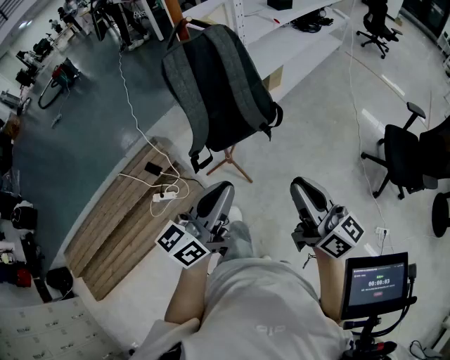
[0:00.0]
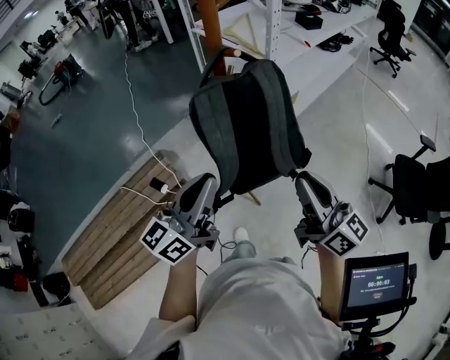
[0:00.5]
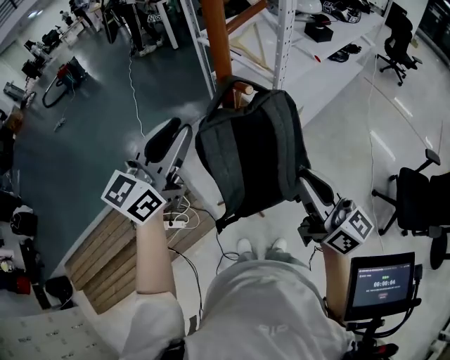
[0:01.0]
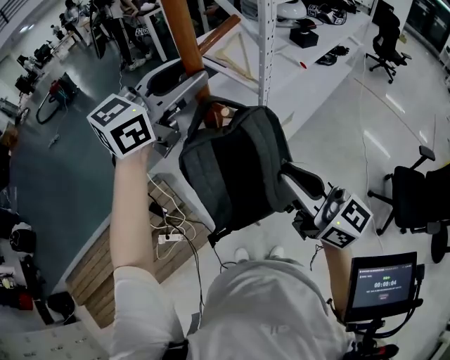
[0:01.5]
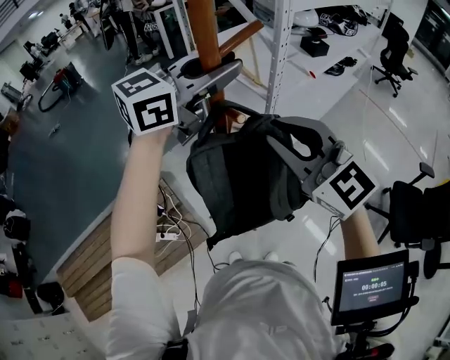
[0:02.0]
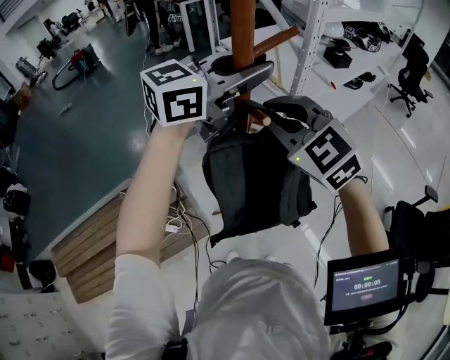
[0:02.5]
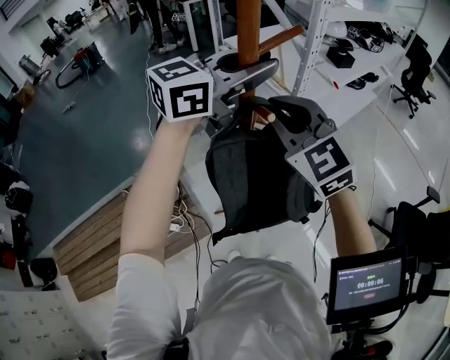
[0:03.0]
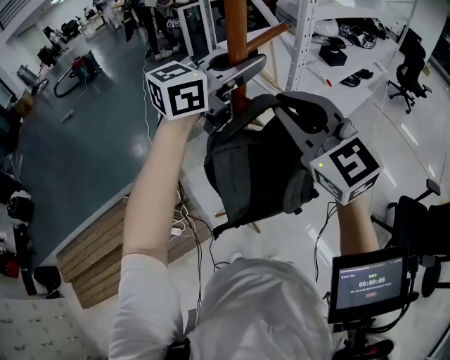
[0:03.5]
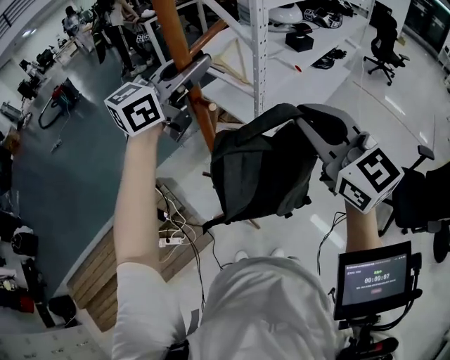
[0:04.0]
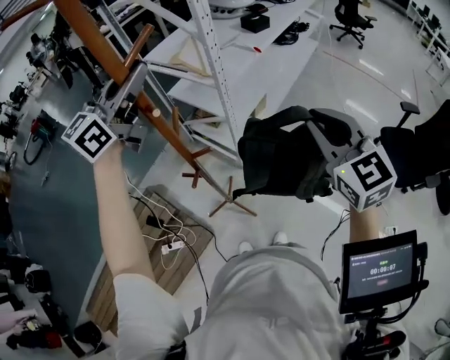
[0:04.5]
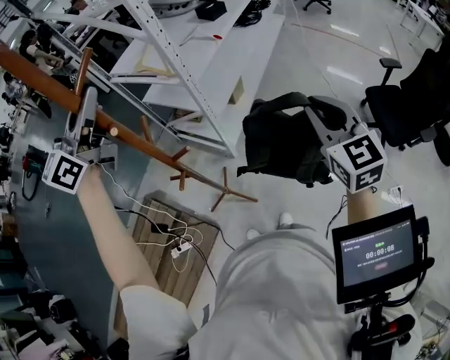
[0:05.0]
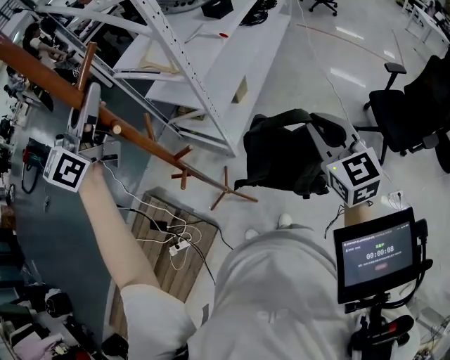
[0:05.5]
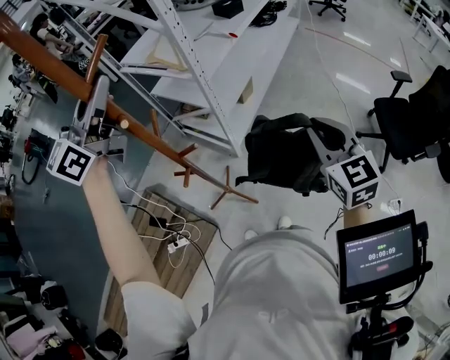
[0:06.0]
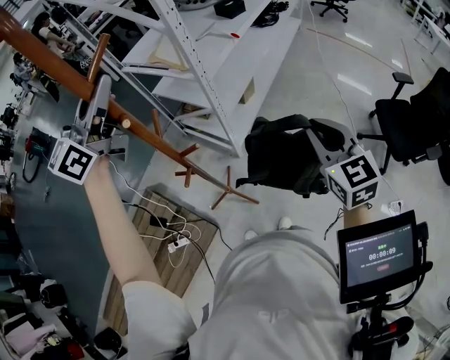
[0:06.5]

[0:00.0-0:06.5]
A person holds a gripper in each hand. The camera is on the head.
0:00.0 to 0:02.0: The right gripper goes some 40 cm forward, to the left and upward, and rotates around the line of its fingers by some 50 degrees, counterclockwise from behind, while the left gripper goes approximately 50 cm forward and upward, changes its angle by some 30 degrees, and opens.
0:02.0 to 0:04.5: The right gripper moves to the right, roughly 20 cm, and turns by about 40 degrees.
0:04.5 to 0:06.5: The right gripper is displaced downward by roughly 10 cm.

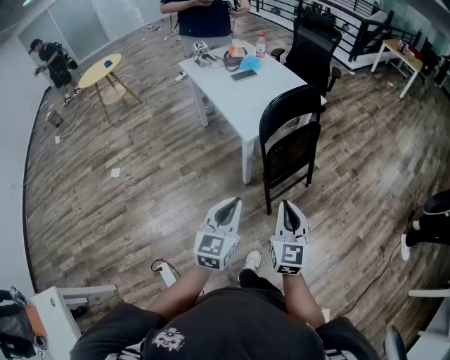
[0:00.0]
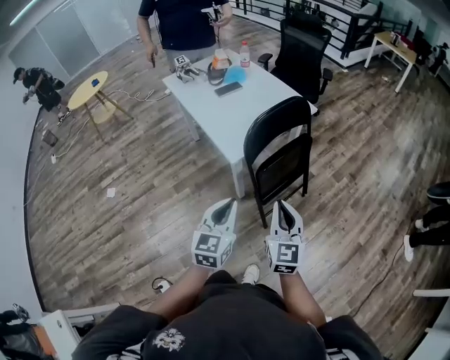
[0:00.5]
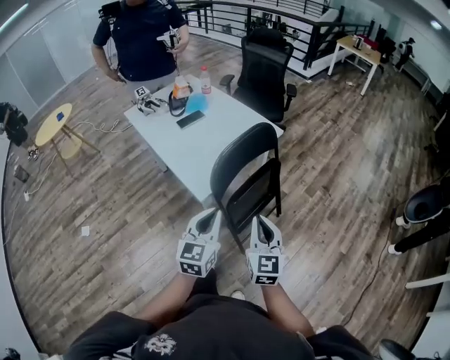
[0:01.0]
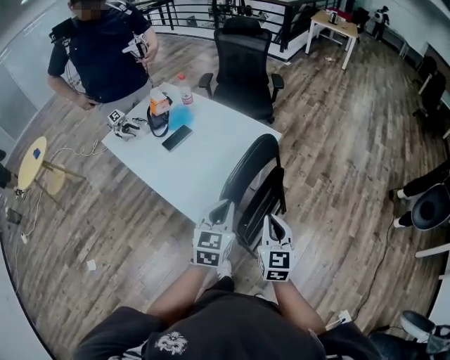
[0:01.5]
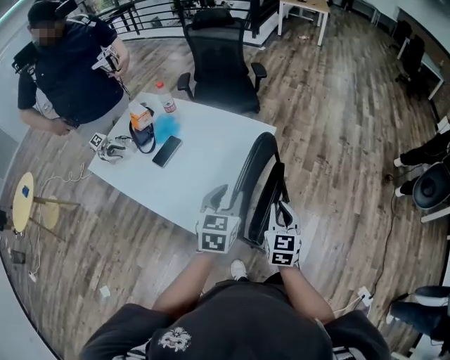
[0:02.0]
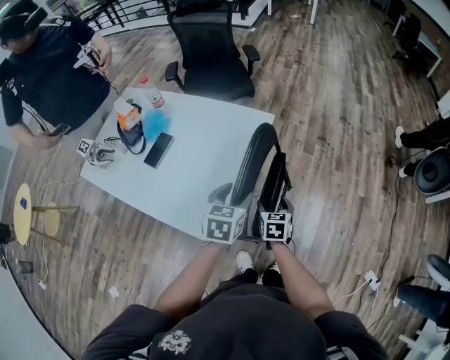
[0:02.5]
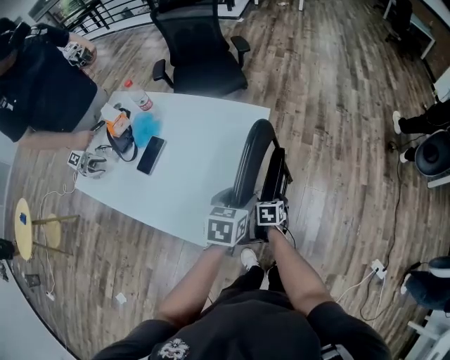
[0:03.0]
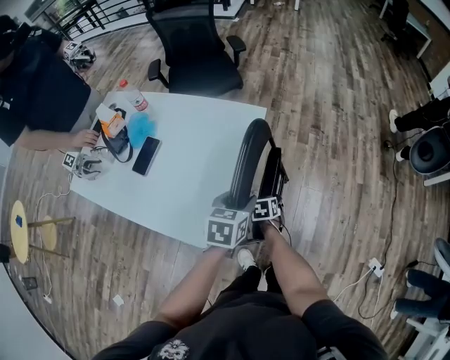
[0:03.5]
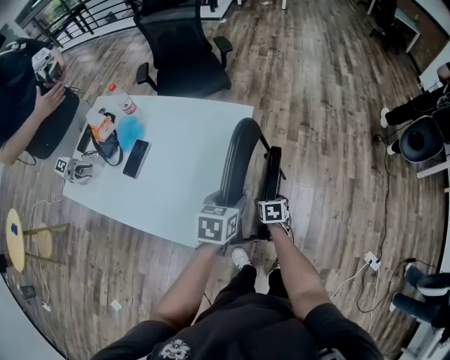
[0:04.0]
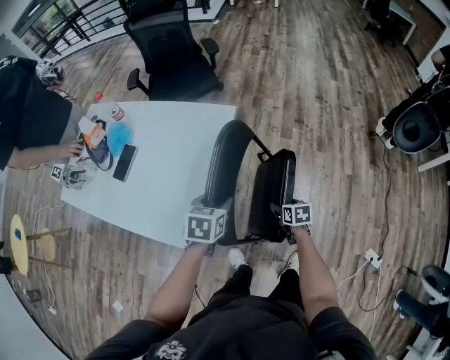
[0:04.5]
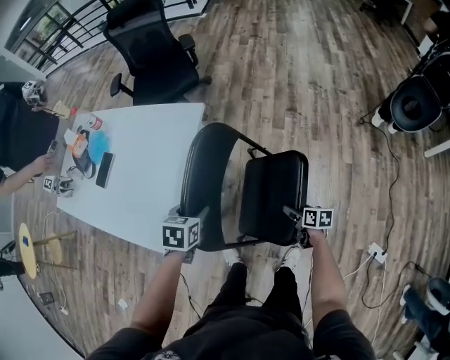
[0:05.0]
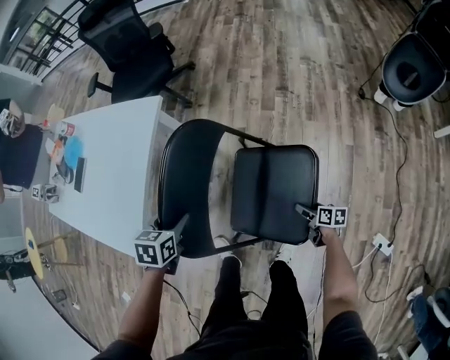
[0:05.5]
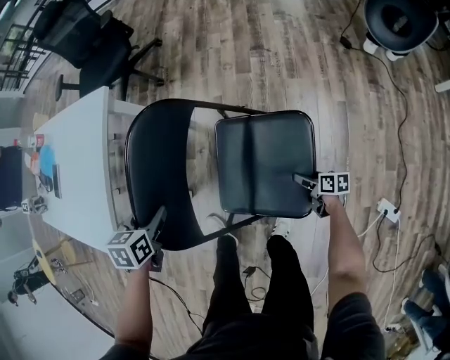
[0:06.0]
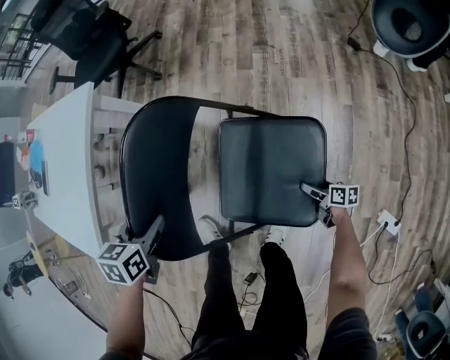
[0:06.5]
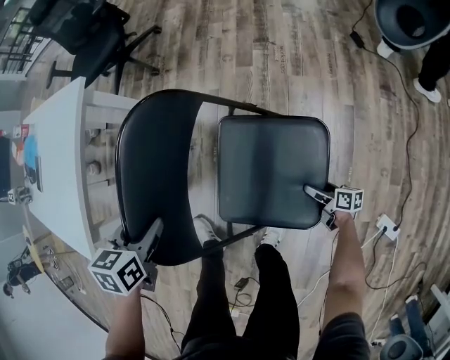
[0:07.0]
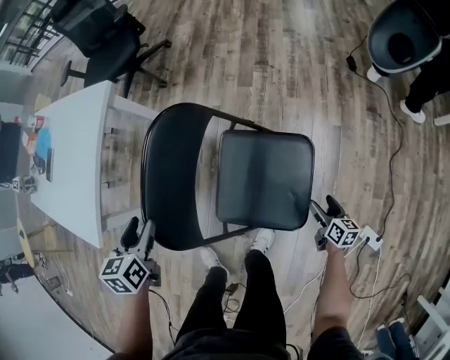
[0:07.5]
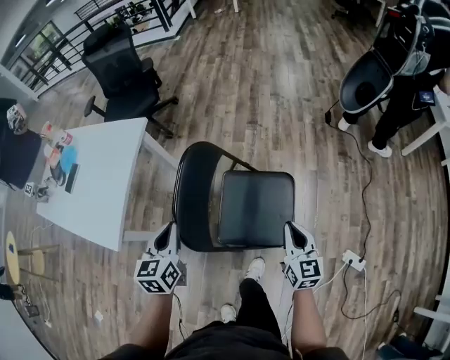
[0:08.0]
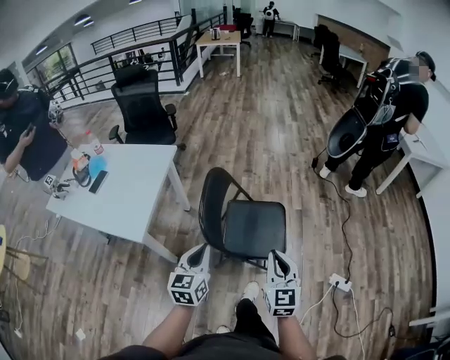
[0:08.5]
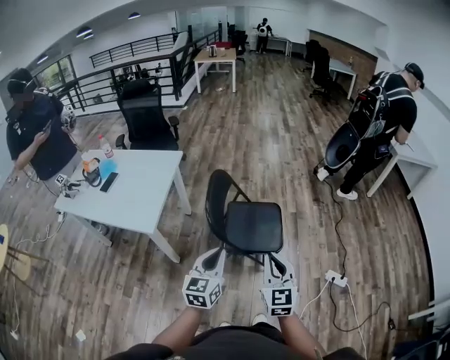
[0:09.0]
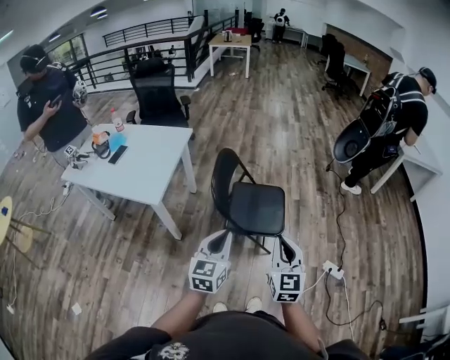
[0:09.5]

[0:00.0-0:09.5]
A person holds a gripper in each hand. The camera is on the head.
0:00.0 to 0:02.0: Both grippers are carried some 50 cm. The left gripper swivels about 30 degrees, and opens, while the right gripper changes its angle by roughly 40 degrees.
0:02.0 to 0:04.0: The right gripper goes roughly 25 cm downward, angles its fingers downward, by about 40 degrees, and opens, while the left gripper heads downward, covering some 10 cm, and turns by some 30 degrees.
0:04.0 to 0:05.5: The left gripper shifts about 20 cm to the right and downward; the right gripper heads to the right and downward, covering approximately 50 cm, and changes its angle by about 40 degrees.
0:05.5 to 0:07.5: The right gripper travels to the right and backward by approximately 20 cm, and changes its angle by approximately 20 degrees. Meanwhile the left gripper moves to the right and backward, about 10 cm, and turns by roughly 20 degrees.
0:07.5 to 0:09.5: The left gripper is displaced backward and upward by approximately 50 cm, tilts its fingers approximately 40 degrees upward, and closes; the right gripper goes roughly 80 cm upward, backward and to the left, swivels approximately 60 degrees, and closes.

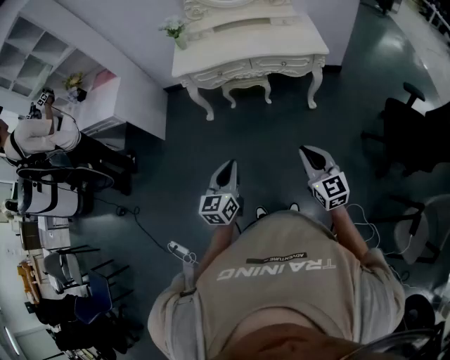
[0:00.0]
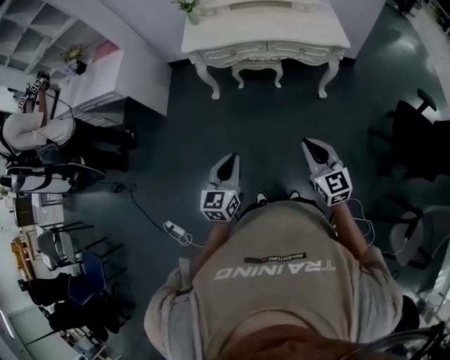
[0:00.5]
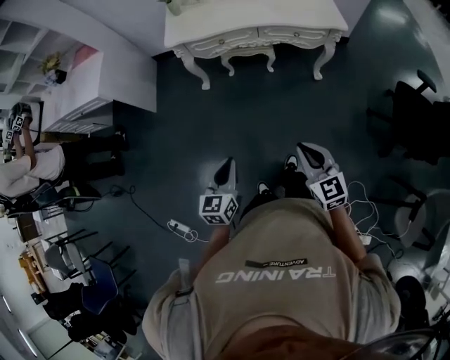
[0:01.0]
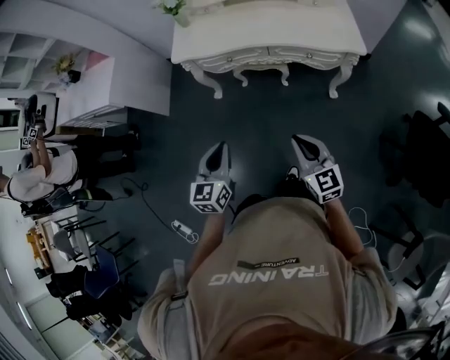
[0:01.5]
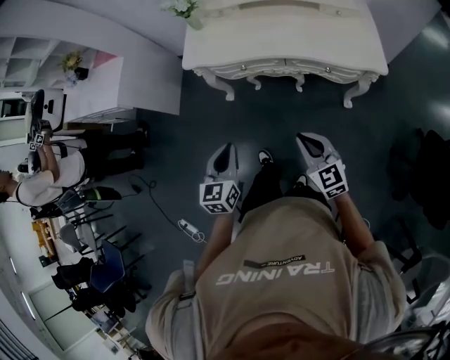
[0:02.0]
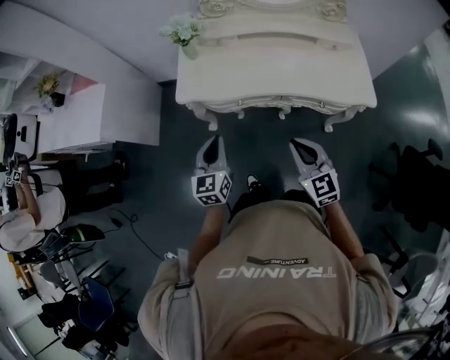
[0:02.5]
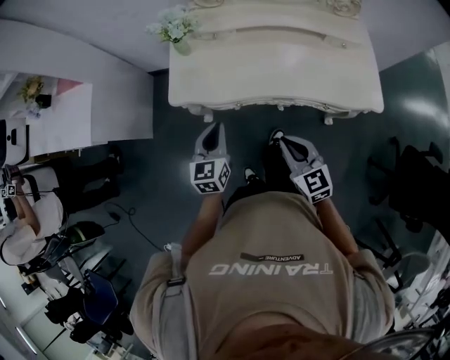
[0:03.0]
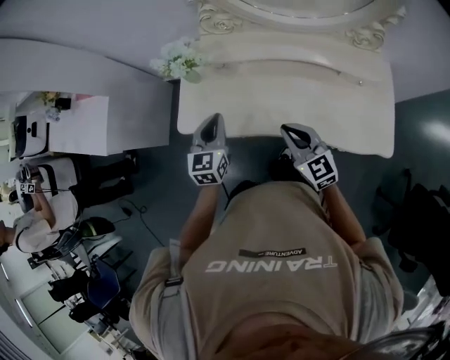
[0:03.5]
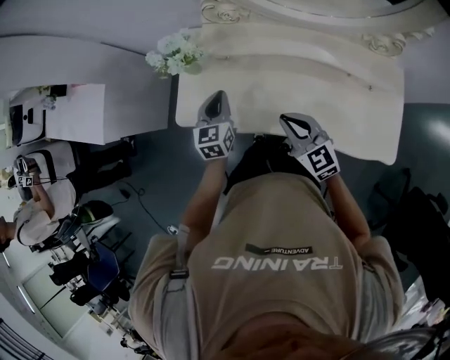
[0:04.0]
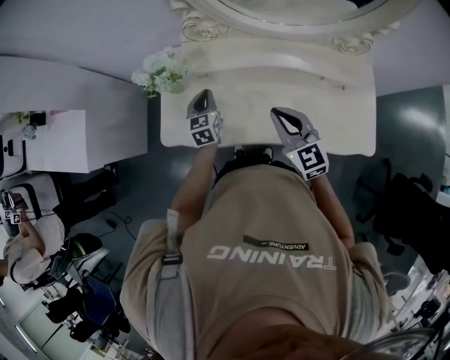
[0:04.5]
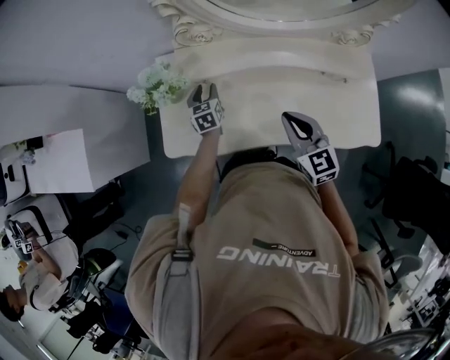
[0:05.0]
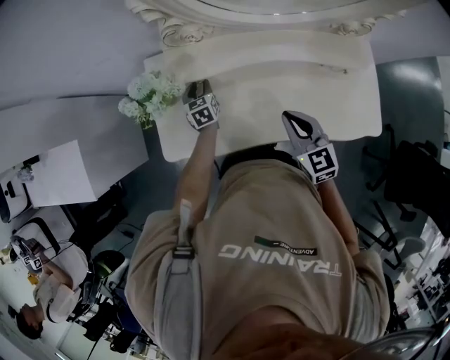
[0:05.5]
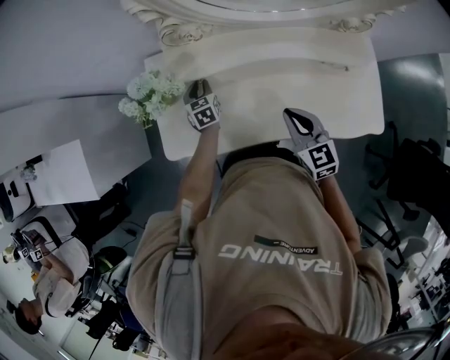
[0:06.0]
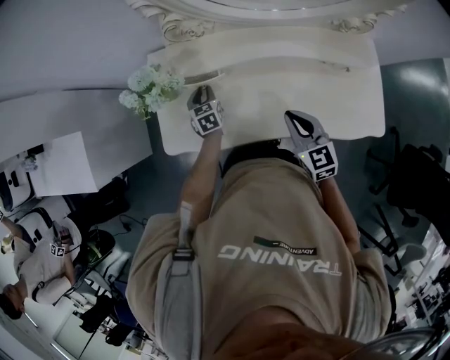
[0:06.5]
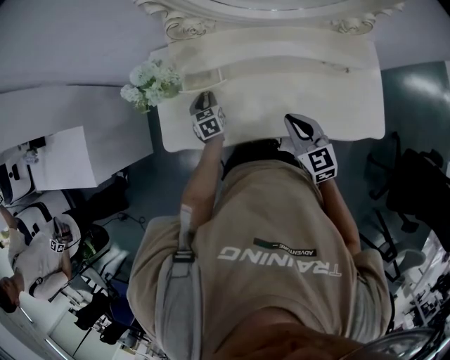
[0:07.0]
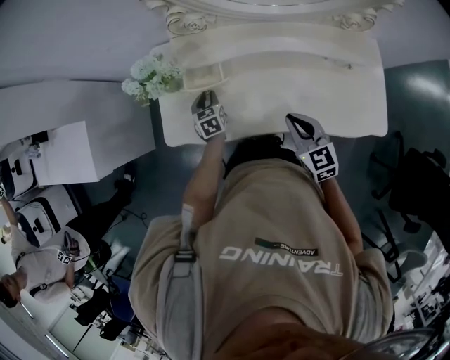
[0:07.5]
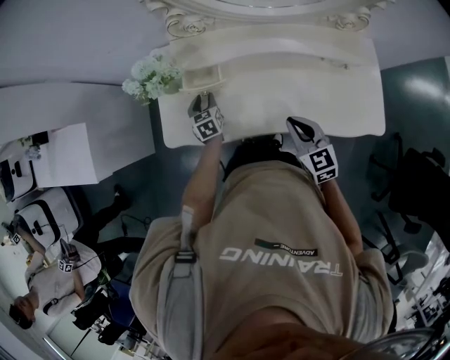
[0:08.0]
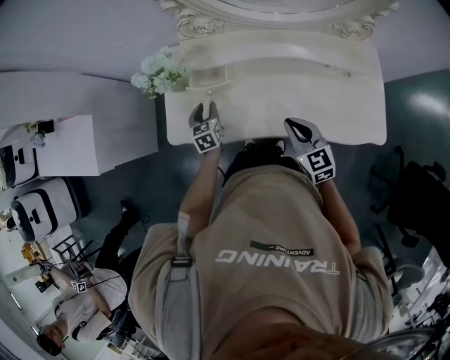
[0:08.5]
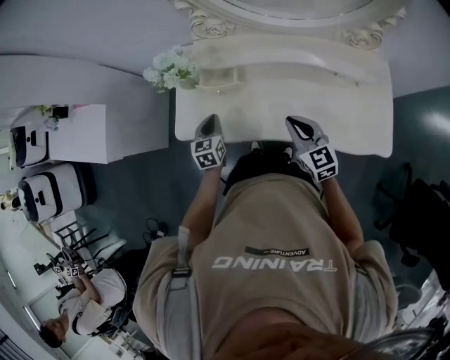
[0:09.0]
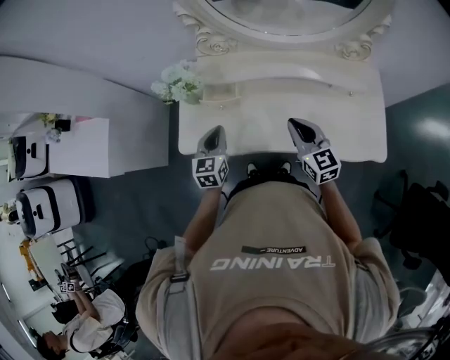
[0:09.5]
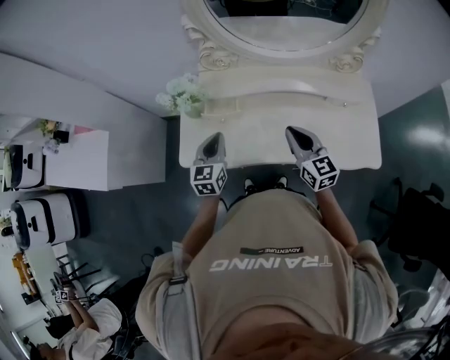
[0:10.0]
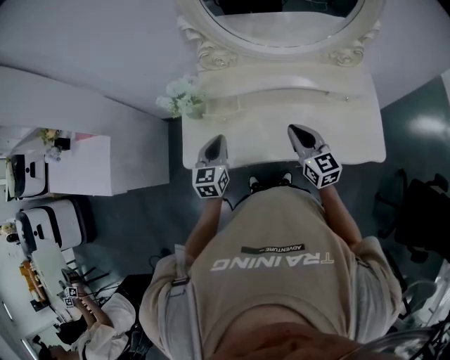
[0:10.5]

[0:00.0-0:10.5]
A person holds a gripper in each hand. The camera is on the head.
0:00.0 to 0:02.0: The grippers both shift forward by roughly 35 cm.
0:02.0 to 0:04.0: The pair of grippers is taken forward, some 50 cm.
0:04.0 to 0:06.5: The left gripper is displaced downward and forward by some 20 cm, and opens. The right gripper ends up roughly 5 cm from where it was, and turns by about 30 degrees.
0:06.5 to 0:08.5: The left gripper travels backward by some 10 cm. Meanwhile the right gripper moves backward, approximately 5 cm.
0:08.5 to 0:10.5: The right gripper travels upward by about 5 cm. Meanwhile the left gripper travels upward and backward by some 15 cm, swivels some 20 degrees, and closes its fingers.
